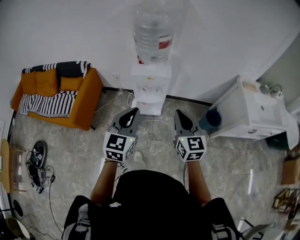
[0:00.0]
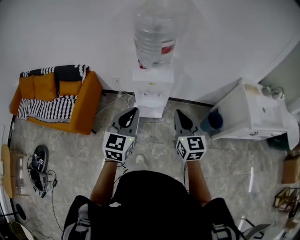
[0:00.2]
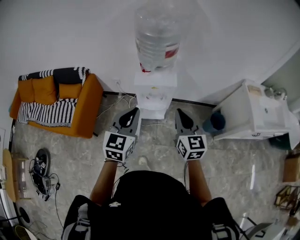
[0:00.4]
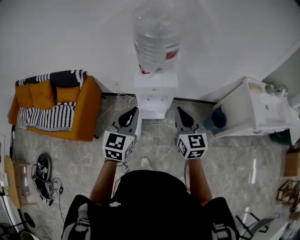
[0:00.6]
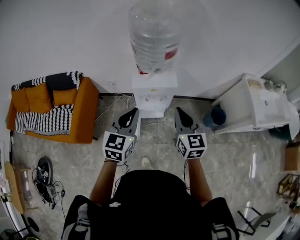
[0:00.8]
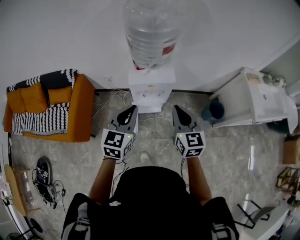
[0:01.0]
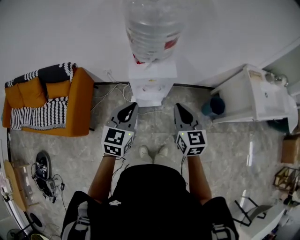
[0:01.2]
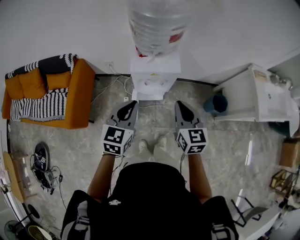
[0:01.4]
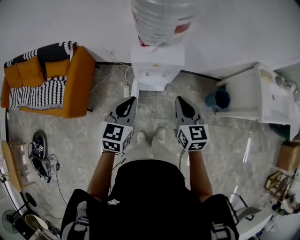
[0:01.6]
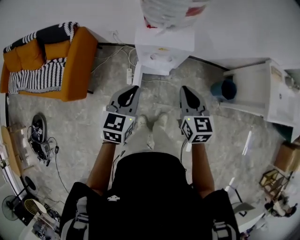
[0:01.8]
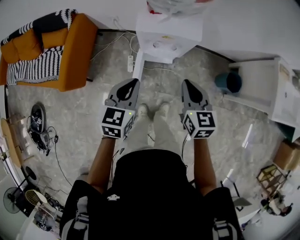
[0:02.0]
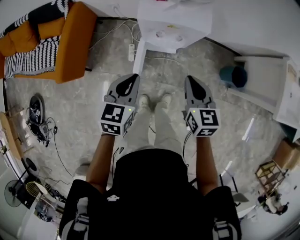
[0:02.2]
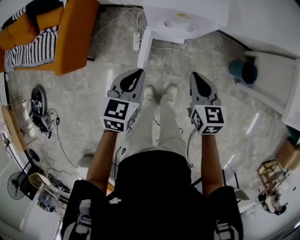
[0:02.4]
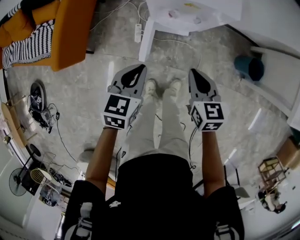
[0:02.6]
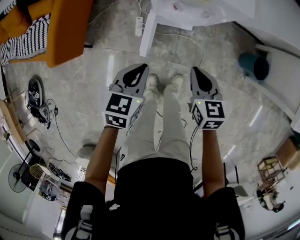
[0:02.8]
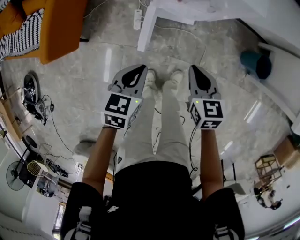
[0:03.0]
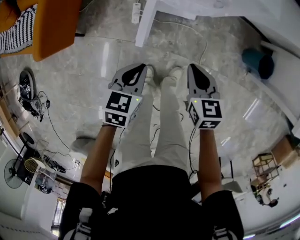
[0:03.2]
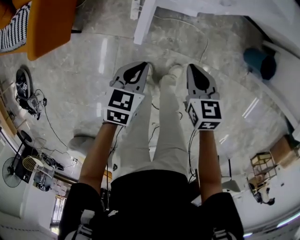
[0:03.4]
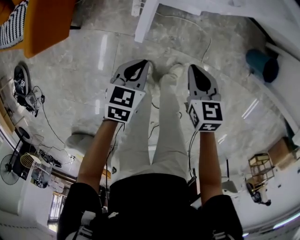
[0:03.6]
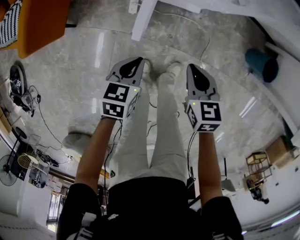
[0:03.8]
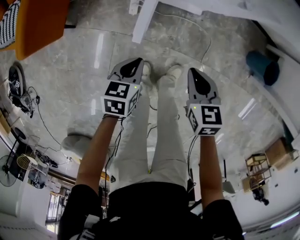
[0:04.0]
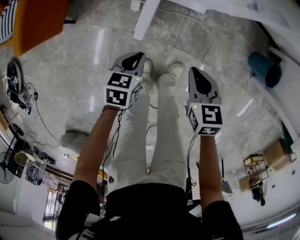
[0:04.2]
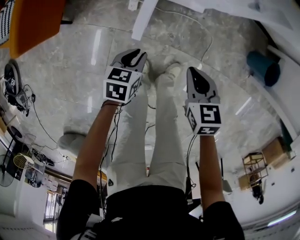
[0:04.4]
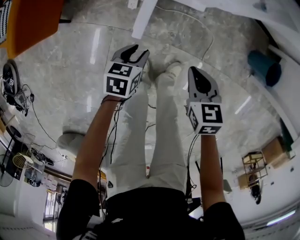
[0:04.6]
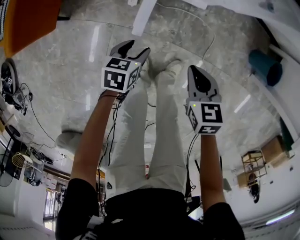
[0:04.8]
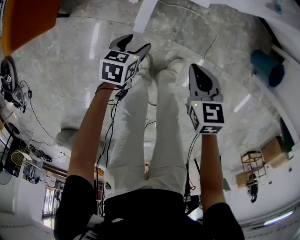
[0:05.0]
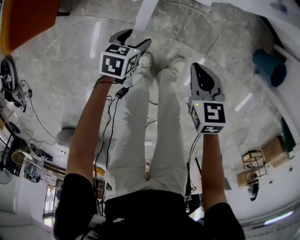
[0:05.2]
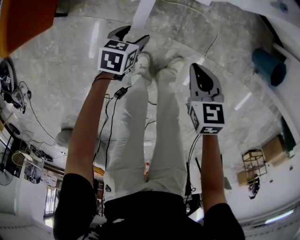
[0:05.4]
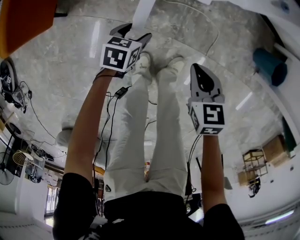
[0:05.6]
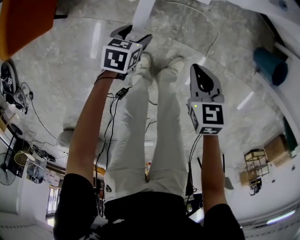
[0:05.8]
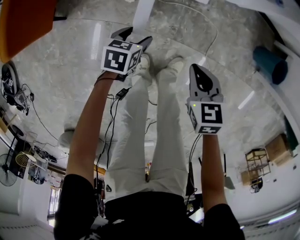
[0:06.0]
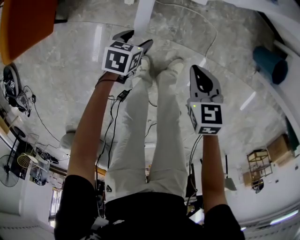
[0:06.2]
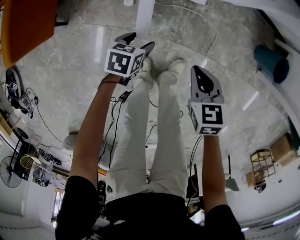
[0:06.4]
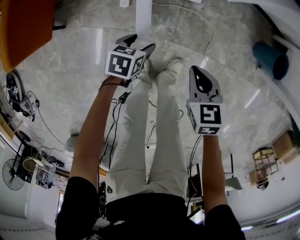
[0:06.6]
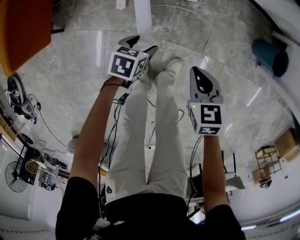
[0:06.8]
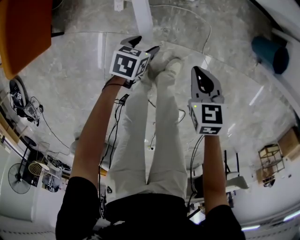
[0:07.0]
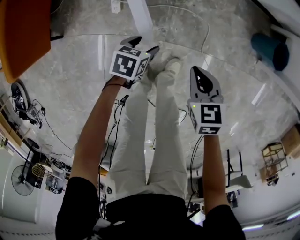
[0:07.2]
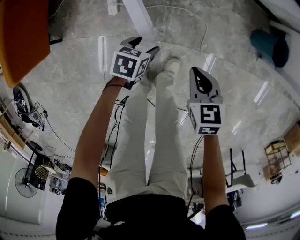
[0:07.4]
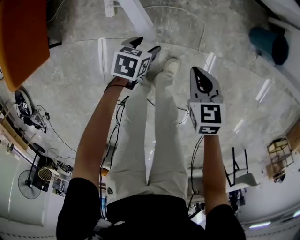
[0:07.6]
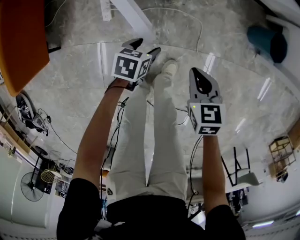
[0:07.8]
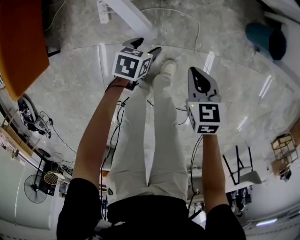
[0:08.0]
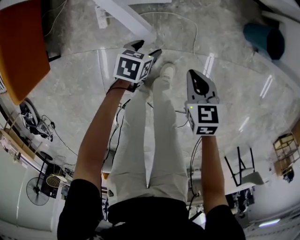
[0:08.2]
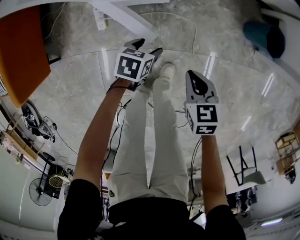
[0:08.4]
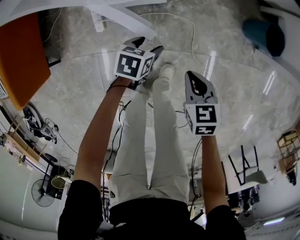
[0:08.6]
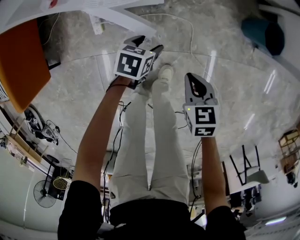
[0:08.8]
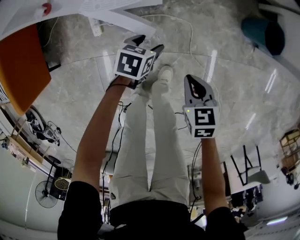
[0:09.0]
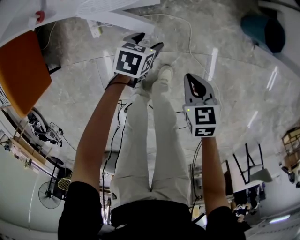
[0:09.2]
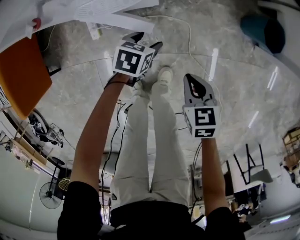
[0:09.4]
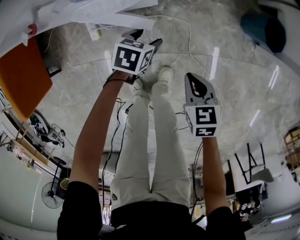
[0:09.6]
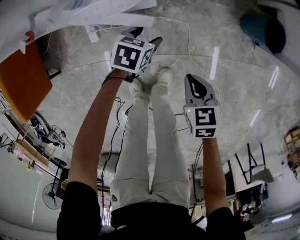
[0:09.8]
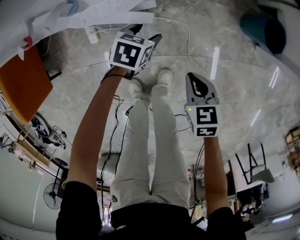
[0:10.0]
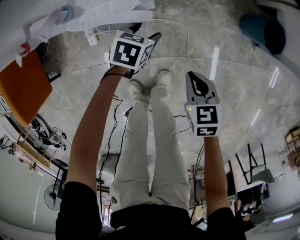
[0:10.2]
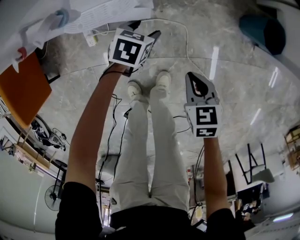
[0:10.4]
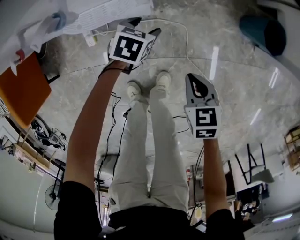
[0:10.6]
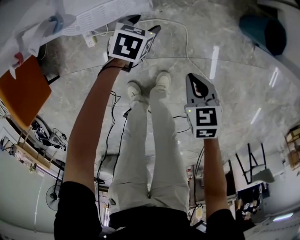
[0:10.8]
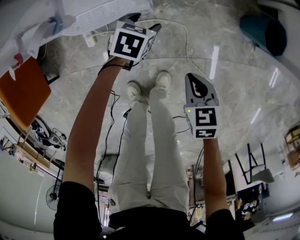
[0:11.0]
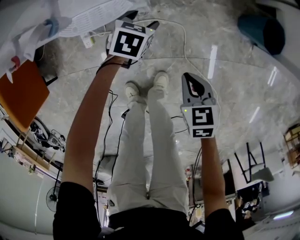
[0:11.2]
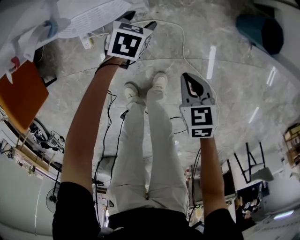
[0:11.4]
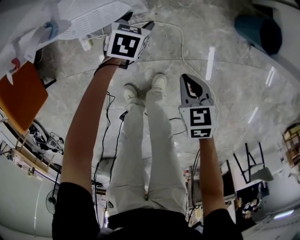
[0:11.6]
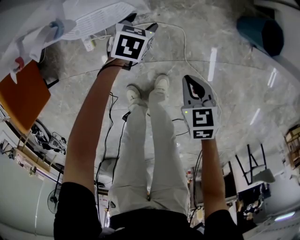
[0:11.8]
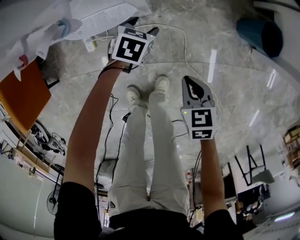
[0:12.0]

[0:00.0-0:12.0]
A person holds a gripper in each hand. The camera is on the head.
0:00.0 to 0:01.6: Both grippers travel together forward, downward and to the left, approximately 20 cm.
0:01.6 to 0:03.0: Both grippers move downward, roughly 30 cm. The right gripper changes its angle by approximately 30 degrees; the left gripper swivels roughly 30 degrees.
0:03.0 to 0:04.4: The left gripper goes roughly 25 cm downward. The right gripper shifts approximately 15 cm downward.
0:04.4 to 0:06.0: The right gripper shifts by roughly 5 cm, while the left gripper is displaced downward by roughly 10 cm, and opens up.
0:06.0 to 0:07.6: Both grippers travel together to the right, roughly 10 cm.
0:07.6 to 0:09.0: The right gripper goes about 5 cm to the right. Meanwhile the left gripper heads forward and to the right, covering roughly 10 cm.
0:09.0 to 0:10.4: The right gripper goes some 5 cm forward. Meanwhile the left gripper moves forward, approximately 10 cm.
0:10.4 to 0:12.0: There are only small adjustments of the grippers.

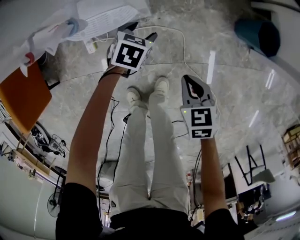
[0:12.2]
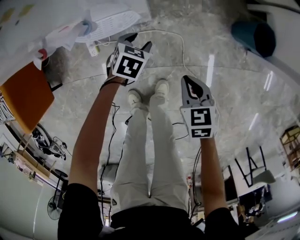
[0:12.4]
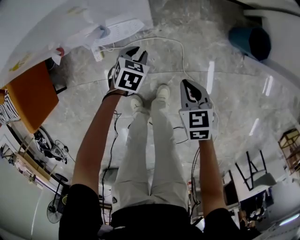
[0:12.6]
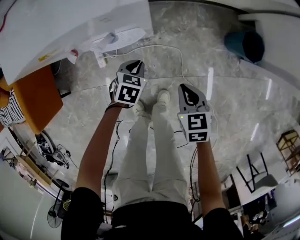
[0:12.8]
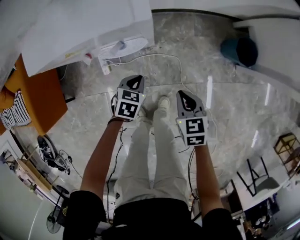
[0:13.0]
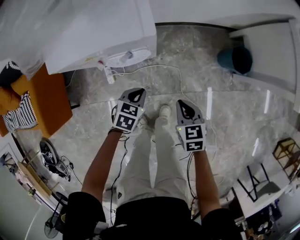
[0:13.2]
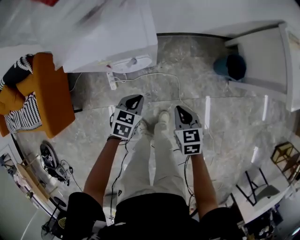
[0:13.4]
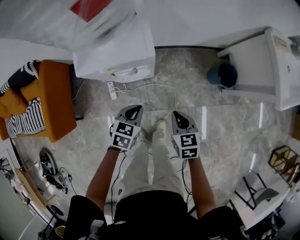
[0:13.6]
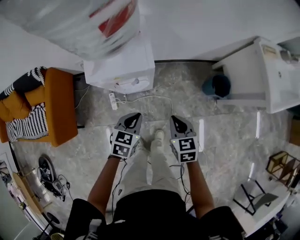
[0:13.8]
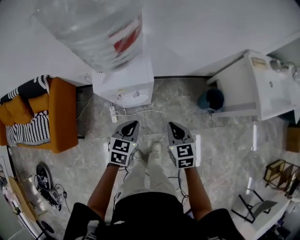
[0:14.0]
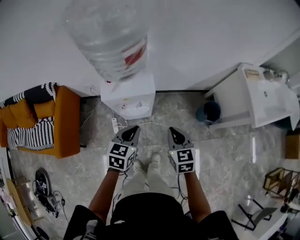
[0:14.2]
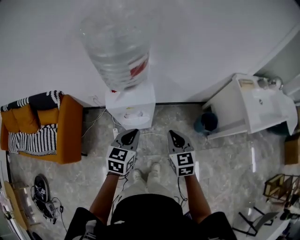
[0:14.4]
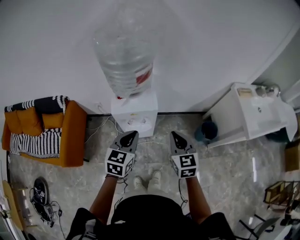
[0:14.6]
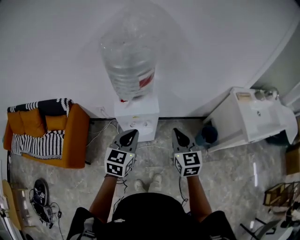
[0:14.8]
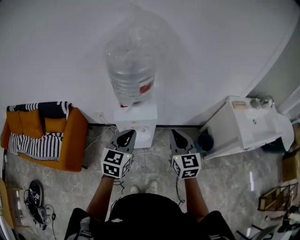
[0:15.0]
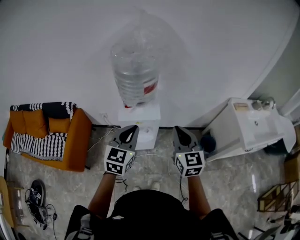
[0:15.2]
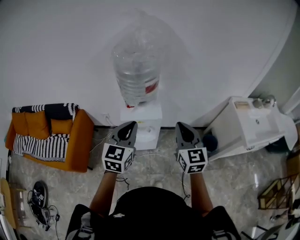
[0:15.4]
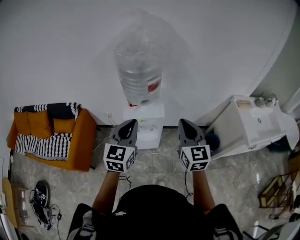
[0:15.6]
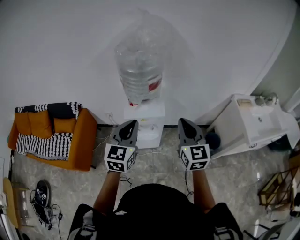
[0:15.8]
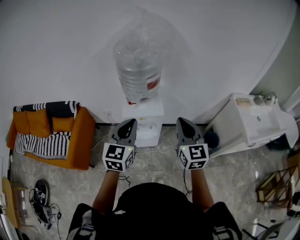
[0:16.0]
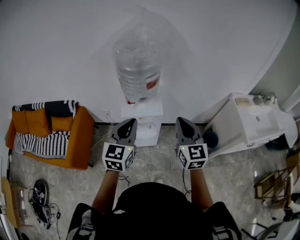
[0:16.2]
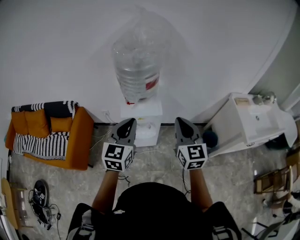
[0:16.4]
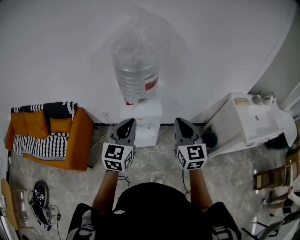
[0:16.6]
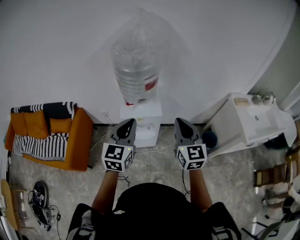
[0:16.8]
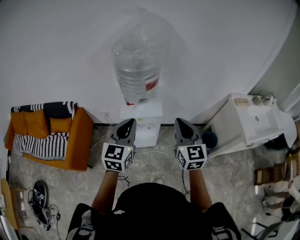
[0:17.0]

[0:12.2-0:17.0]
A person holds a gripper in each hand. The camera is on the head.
0:12.2 to 0:13.8: The grippers both shift upward by roughly 40 cm. The left gripper closes.
0:13.8 to 0:15.4: Both grippers move upward, about 40 cm. The right gripper tilts its fingers some 40 degrees upward. Meanwhile the left gripper points its fingers about 40 degrees further upward.
0:15.4 to 0:17.0: The grippers make only small movements.

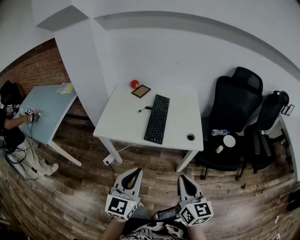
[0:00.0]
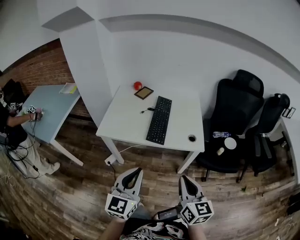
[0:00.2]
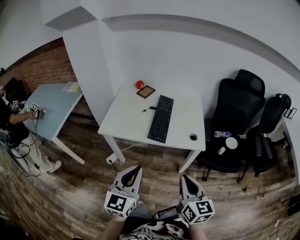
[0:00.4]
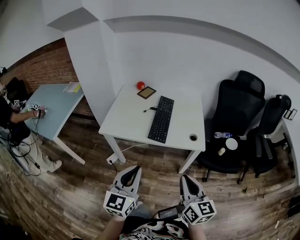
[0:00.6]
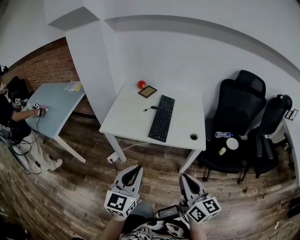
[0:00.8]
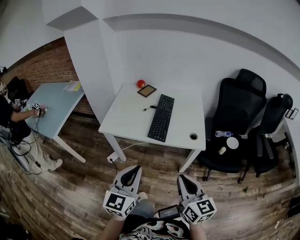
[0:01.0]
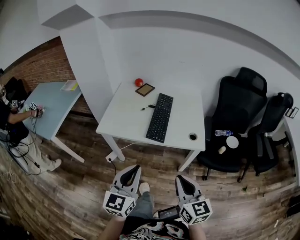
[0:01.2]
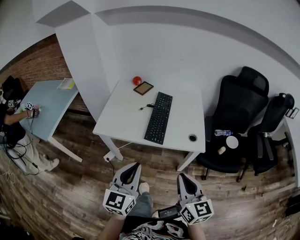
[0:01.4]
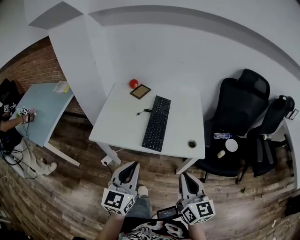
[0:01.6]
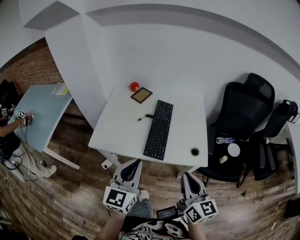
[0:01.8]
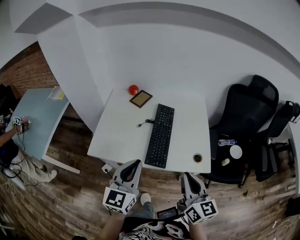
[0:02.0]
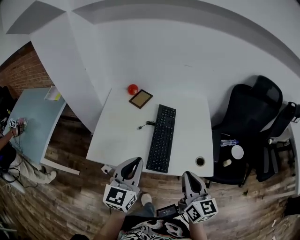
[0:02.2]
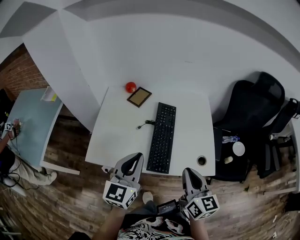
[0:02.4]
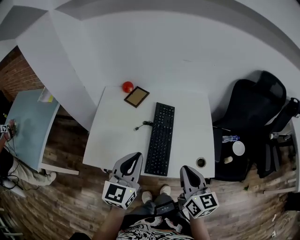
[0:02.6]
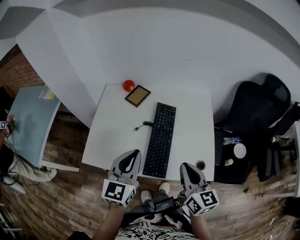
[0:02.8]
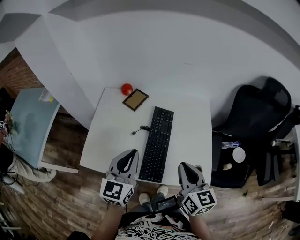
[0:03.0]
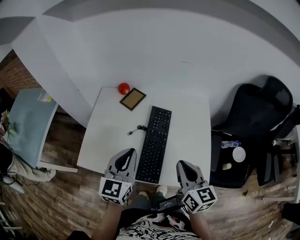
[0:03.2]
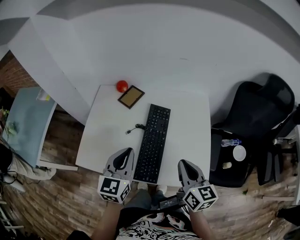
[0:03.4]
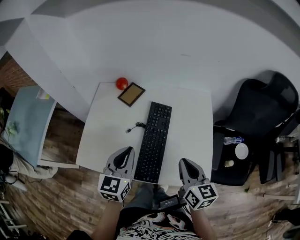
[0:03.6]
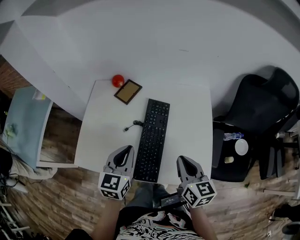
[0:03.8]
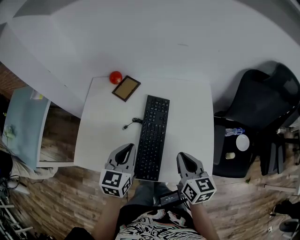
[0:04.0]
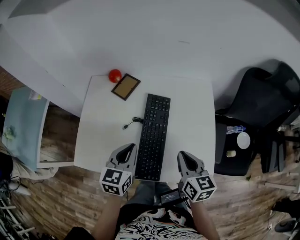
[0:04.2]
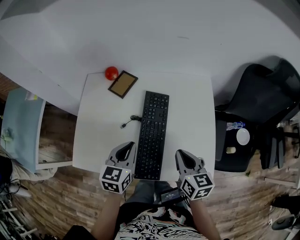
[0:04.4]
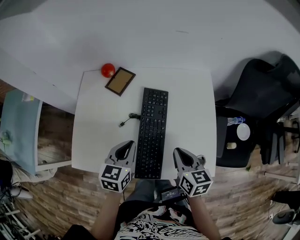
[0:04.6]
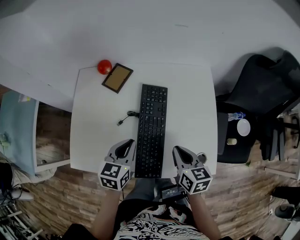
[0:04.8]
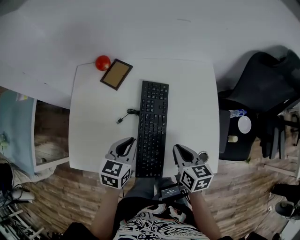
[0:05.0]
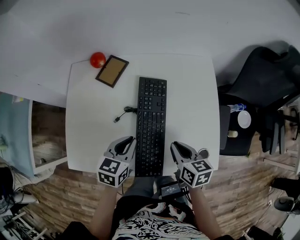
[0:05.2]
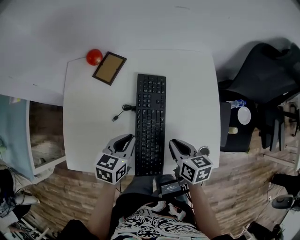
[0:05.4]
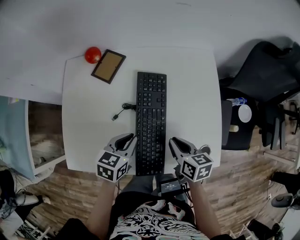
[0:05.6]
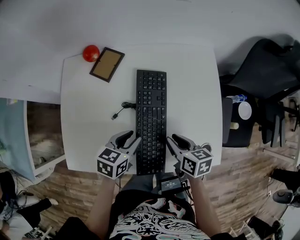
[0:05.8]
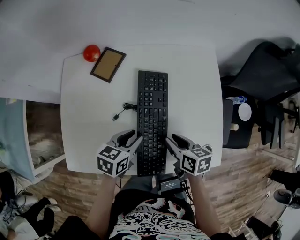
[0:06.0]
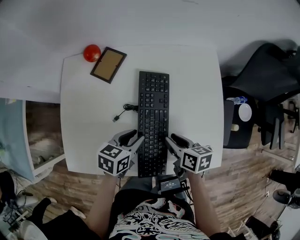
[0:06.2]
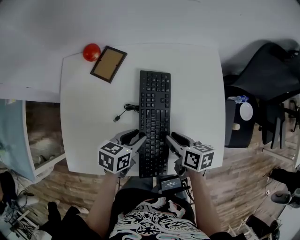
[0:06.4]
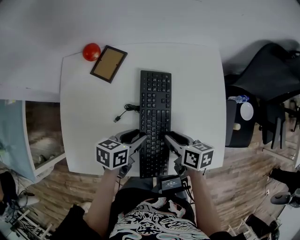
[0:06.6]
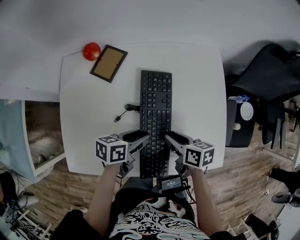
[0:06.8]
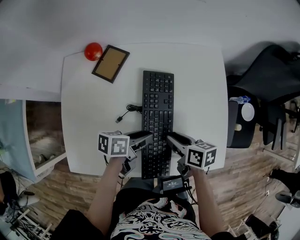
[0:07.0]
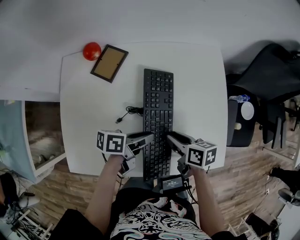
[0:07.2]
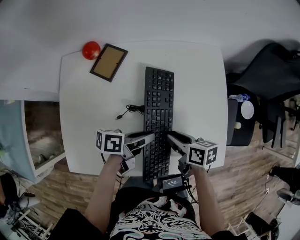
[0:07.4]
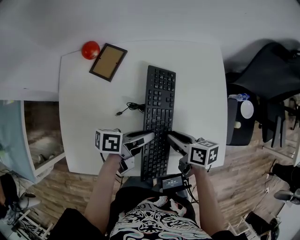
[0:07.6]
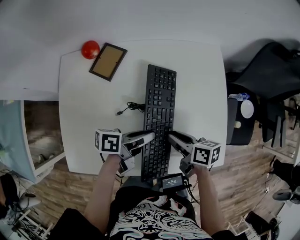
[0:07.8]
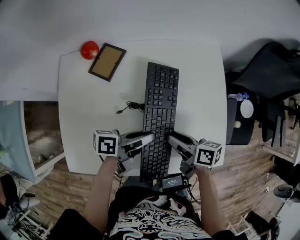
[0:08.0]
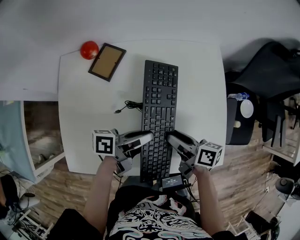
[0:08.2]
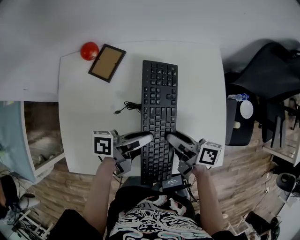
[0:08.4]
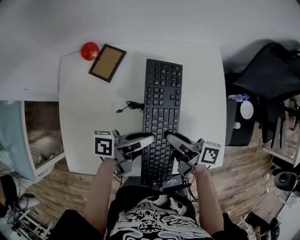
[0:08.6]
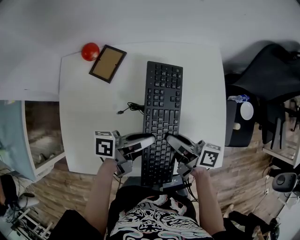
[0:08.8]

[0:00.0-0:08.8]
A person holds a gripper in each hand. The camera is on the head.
0:00.0 to 0:01.4: The grippers move only a little.
0:01.4 to 0:03.0: Both grippers move forward, about 35 cm.
0:03.0 to 0:04.4: The grippers both shift downward and forward by approximately 15 cm. The left gripper turns by some 20 degrees.
0:04.4 to 0:05.8: The grippers both shift downward by some 10 cm. The right gripper changes its angle by some 20 degrees; the left gripper swivels approximately 30 degrees, and opens up.
0:05.8 to 0:07.4: The left gripper rotates roughly 50 degrees.
0:07.4 to 0:08.8: The right gripper changes its angle by approximately 30 degrees.
